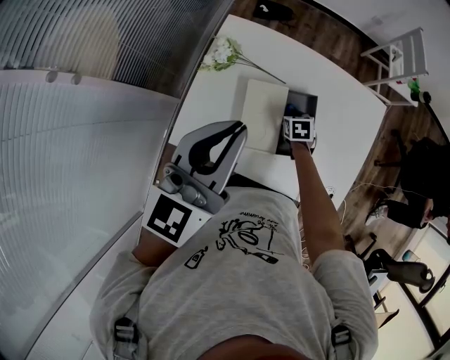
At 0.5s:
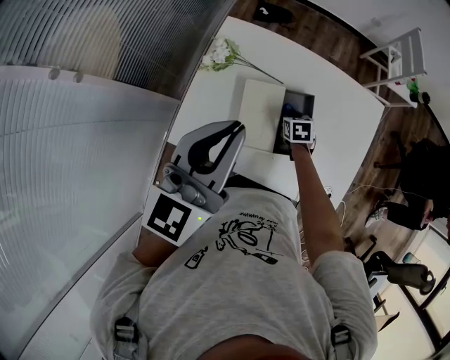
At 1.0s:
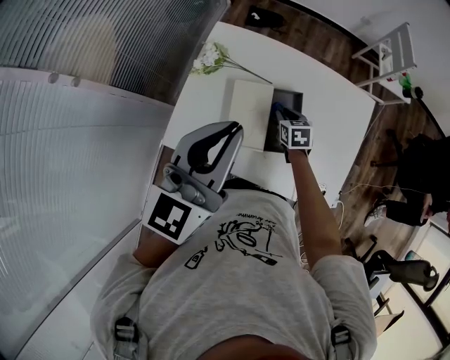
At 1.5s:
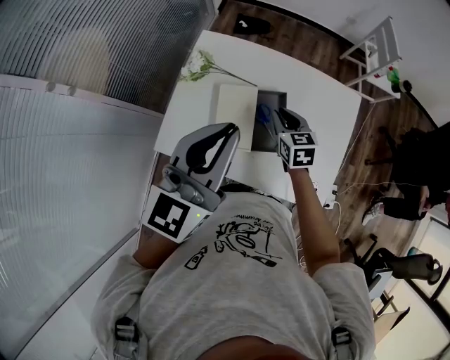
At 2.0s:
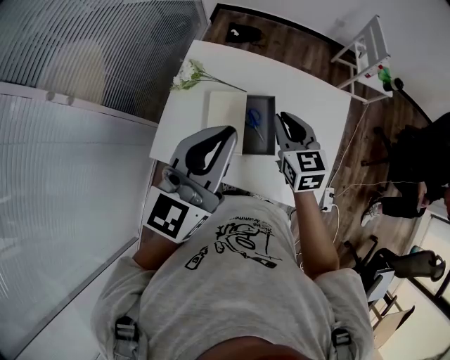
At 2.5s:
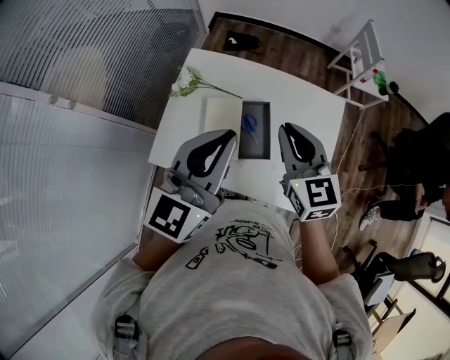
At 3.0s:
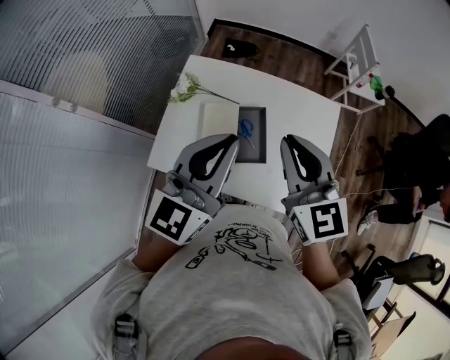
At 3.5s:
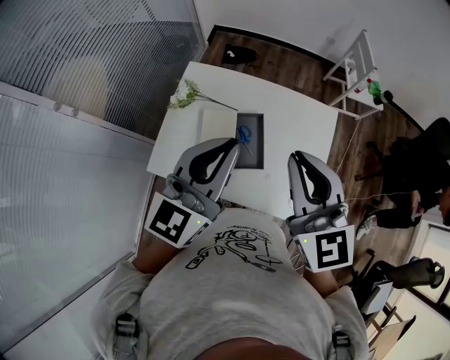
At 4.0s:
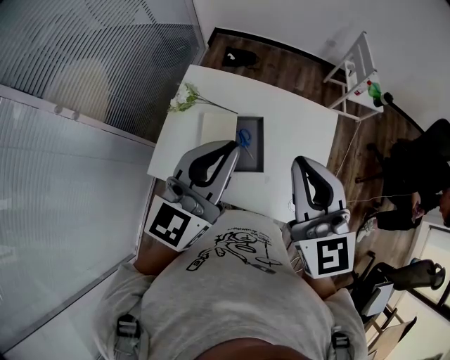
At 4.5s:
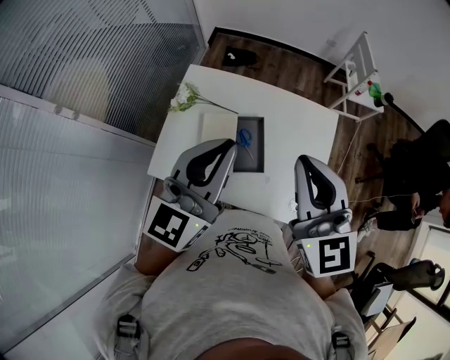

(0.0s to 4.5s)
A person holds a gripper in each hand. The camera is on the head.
0.0s - 2.0s: The right gripper shifts roughly 30 cm upward, and tilts its fingers approximately 40 degrees upward, while the left gripper goes roughly 10 cm to the right.
2.0s - 4.5s: The right gripper is displaced upward and backward by about 25 cm, and swivels approximately 20 degrees.

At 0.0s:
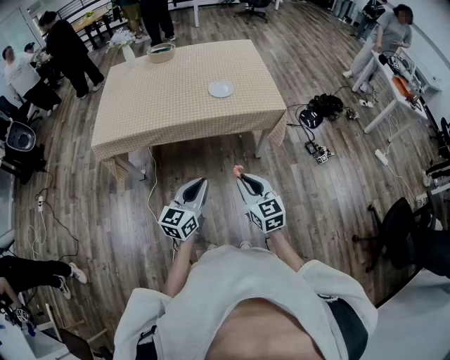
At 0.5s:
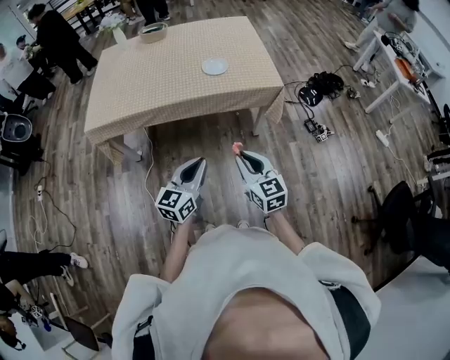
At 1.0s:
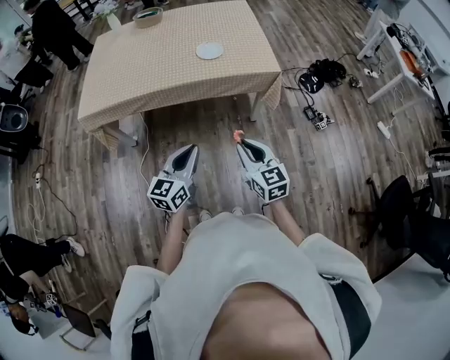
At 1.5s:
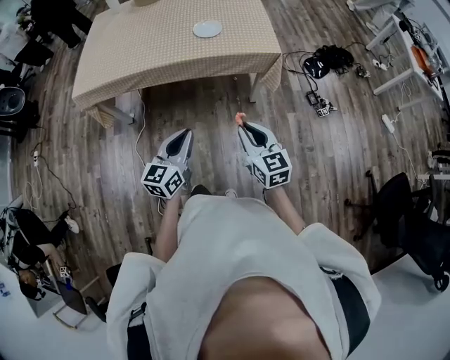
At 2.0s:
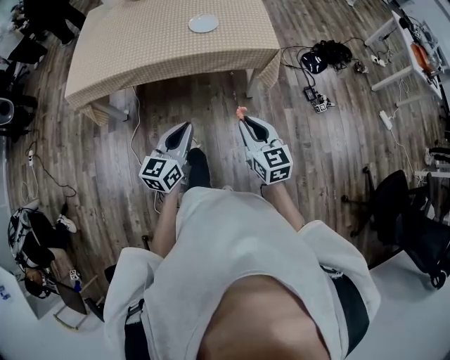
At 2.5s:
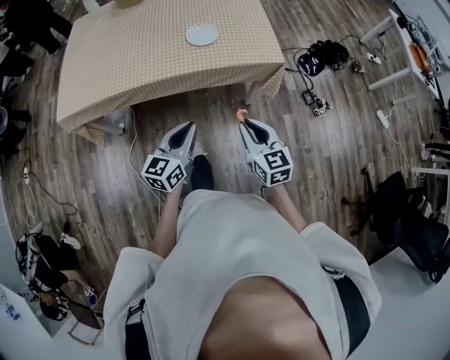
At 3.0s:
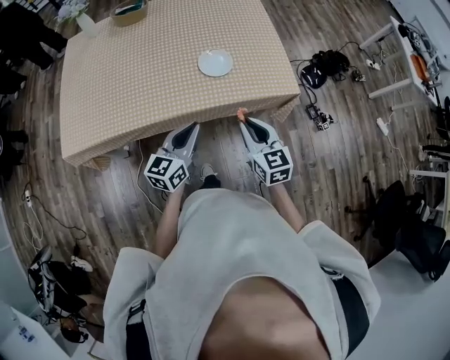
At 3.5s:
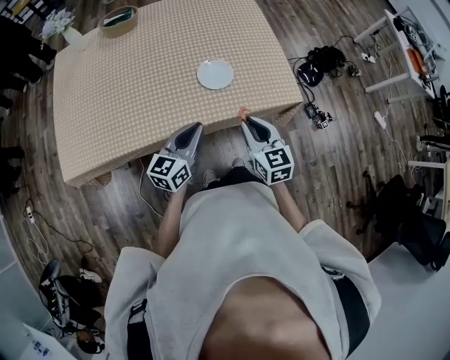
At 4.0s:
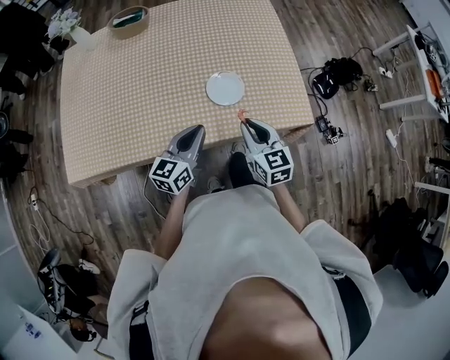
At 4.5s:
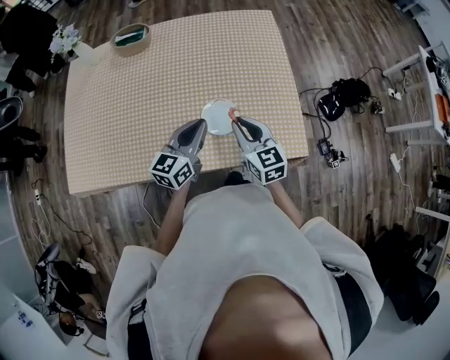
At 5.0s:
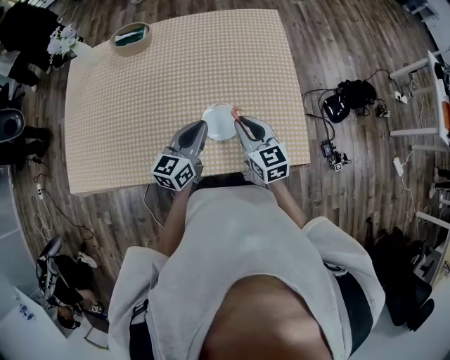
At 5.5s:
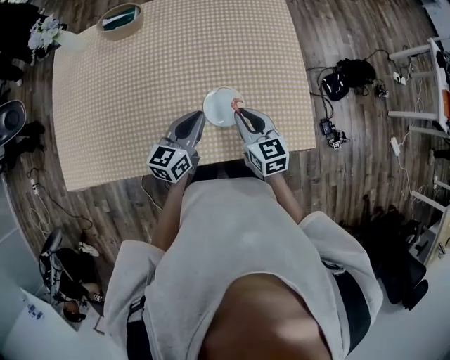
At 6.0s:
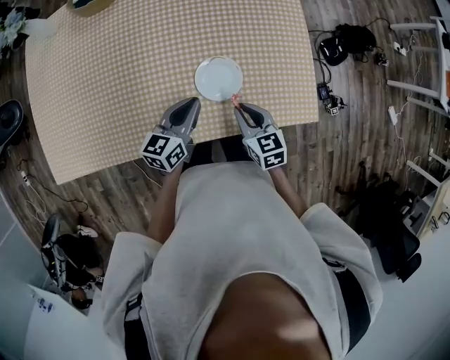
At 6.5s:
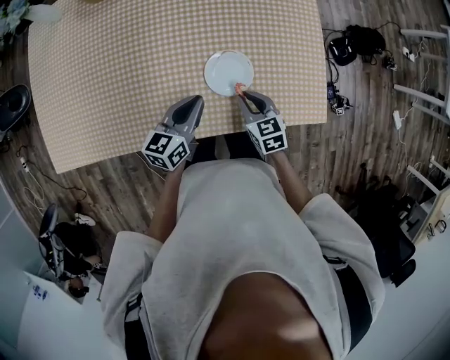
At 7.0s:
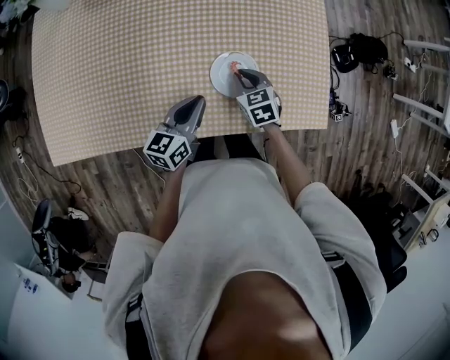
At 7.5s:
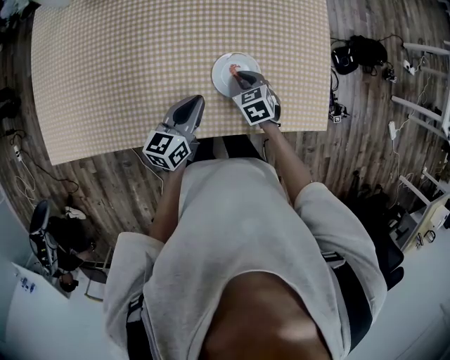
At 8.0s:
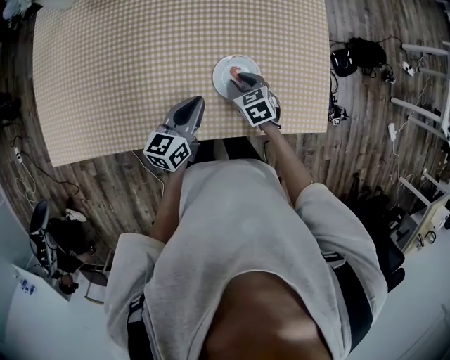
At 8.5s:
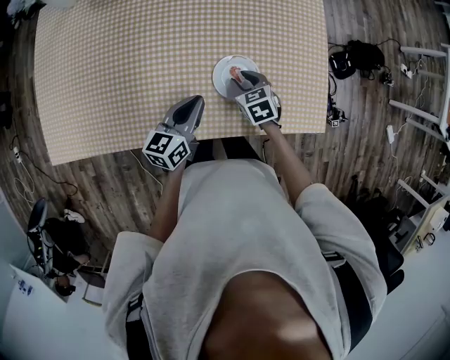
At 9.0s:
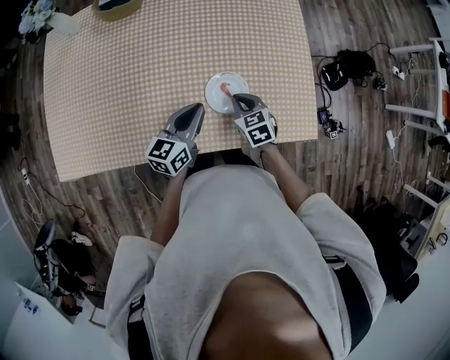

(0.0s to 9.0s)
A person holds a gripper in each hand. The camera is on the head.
0.0s - 2.0s: The grippers both shift to the right by about 10 cm.
2.0s - 4.5s: The two grippers travel together, forward, some 60 cm.
4.5s - 7.0s: The left gripper heads downward and to the left, covering about 15 cm. The right gripper heads downward, covering some 20 cm, and points its fingers roughly 30 degrees further downward.
7.0s - 9.0s: The left gripper changes place by some 5 cm. The right gripper opens and closes again.

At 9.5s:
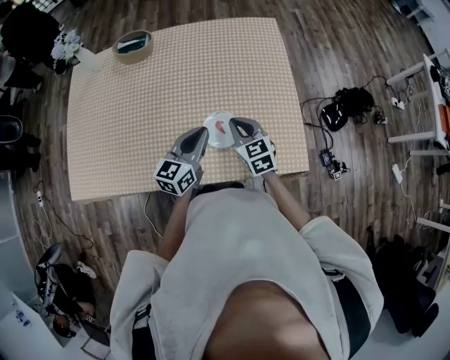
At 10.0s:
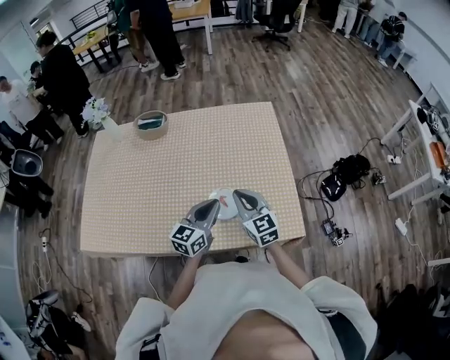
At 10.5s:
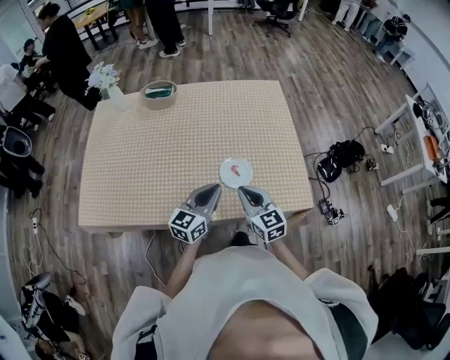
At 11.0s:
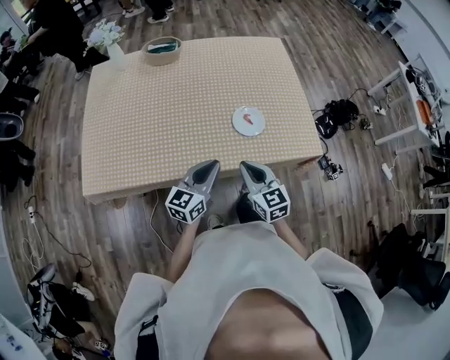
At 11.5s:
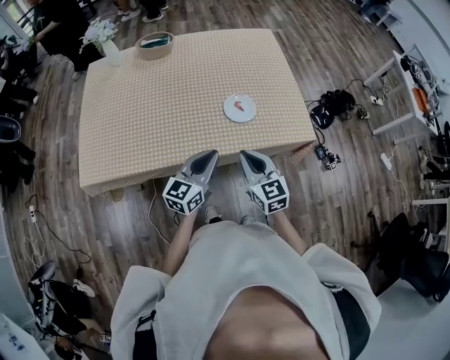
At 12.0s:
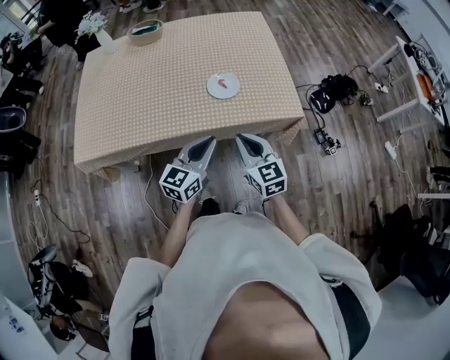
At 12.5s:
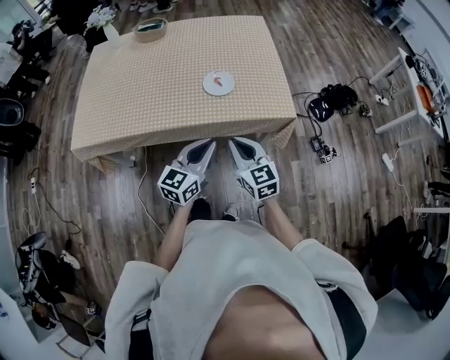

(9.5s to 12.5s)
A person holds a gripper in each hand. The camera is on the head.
9.5s - 11.0s: Both grippers move backward and to the left, roughly 25 cm.
11.0s - 12.5s: The two grippers go about 20 cm to the right and backward.

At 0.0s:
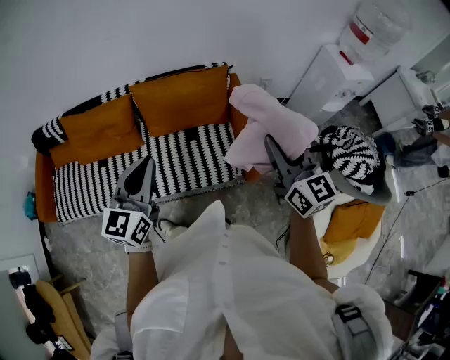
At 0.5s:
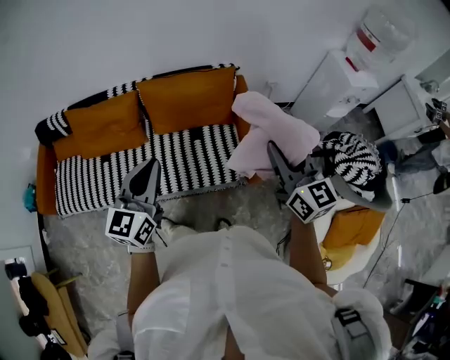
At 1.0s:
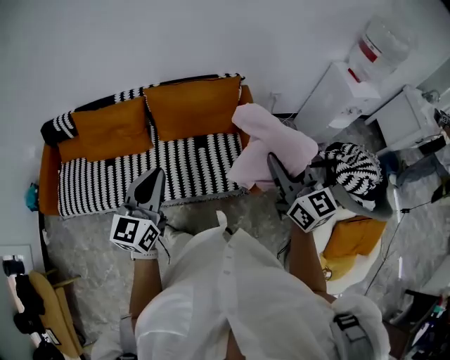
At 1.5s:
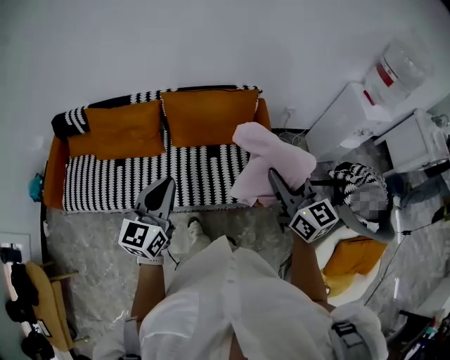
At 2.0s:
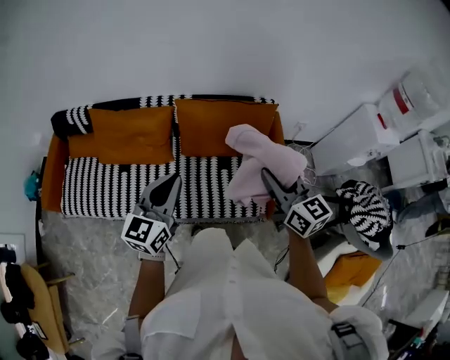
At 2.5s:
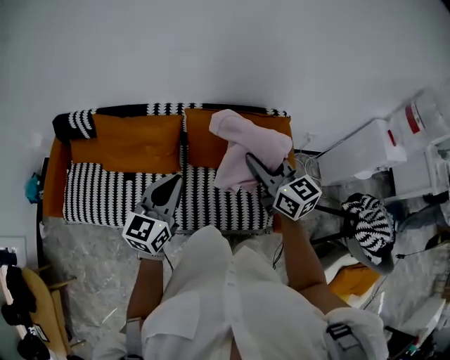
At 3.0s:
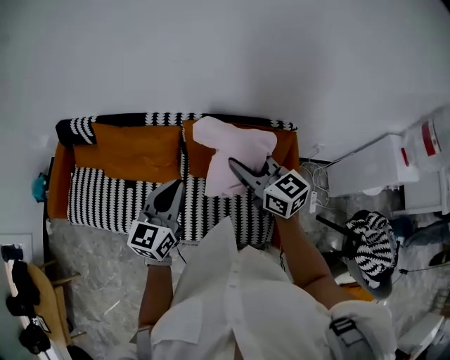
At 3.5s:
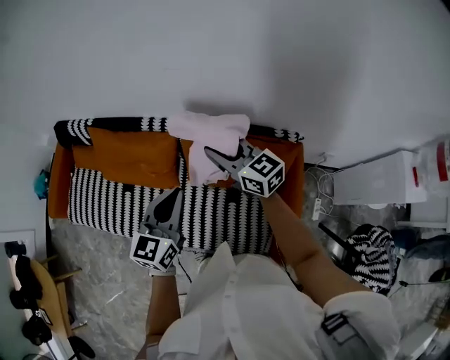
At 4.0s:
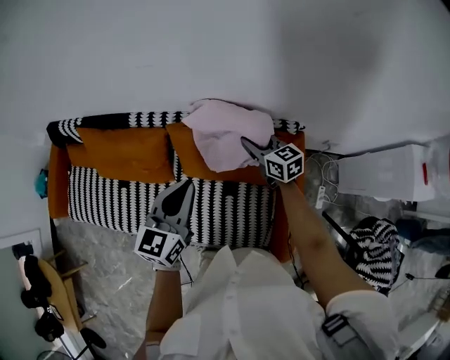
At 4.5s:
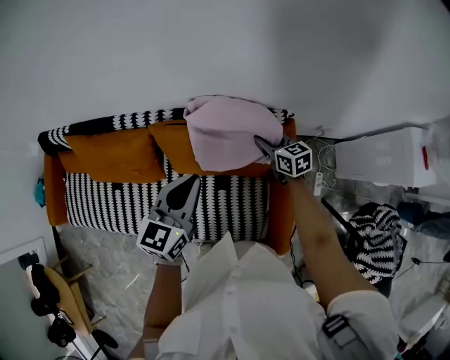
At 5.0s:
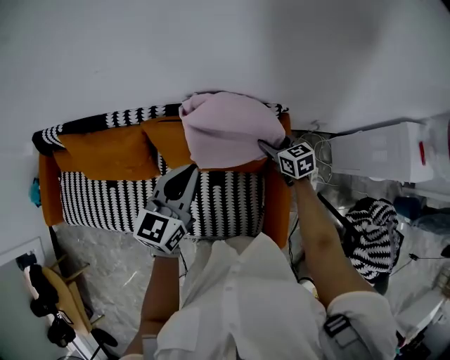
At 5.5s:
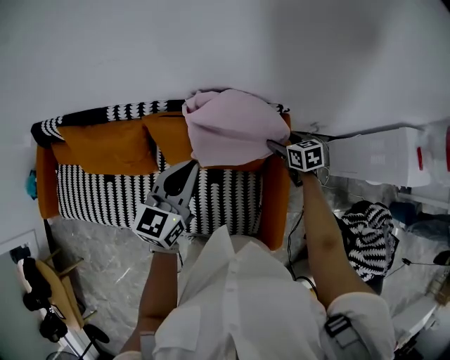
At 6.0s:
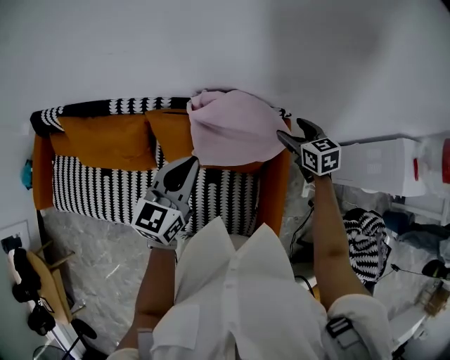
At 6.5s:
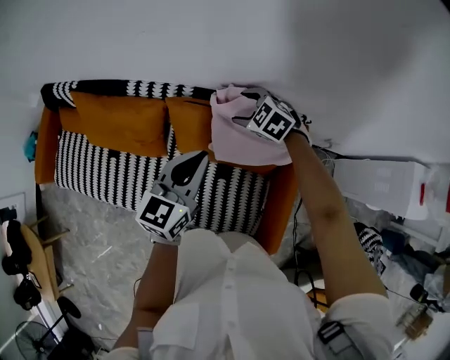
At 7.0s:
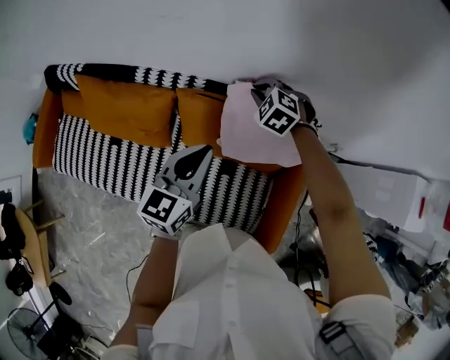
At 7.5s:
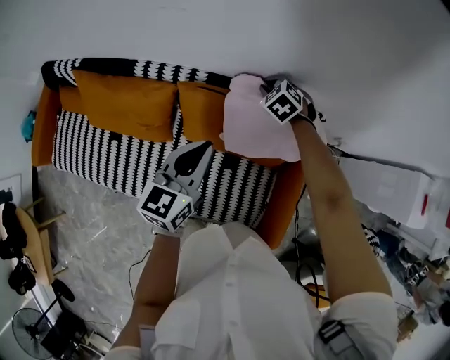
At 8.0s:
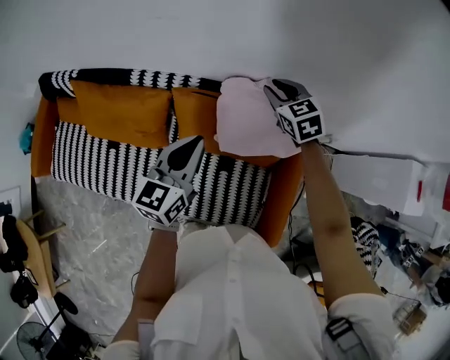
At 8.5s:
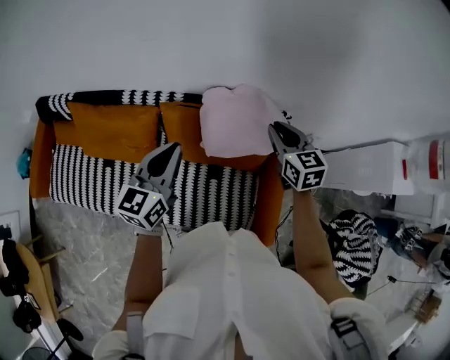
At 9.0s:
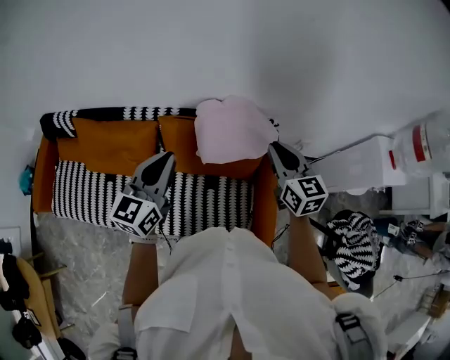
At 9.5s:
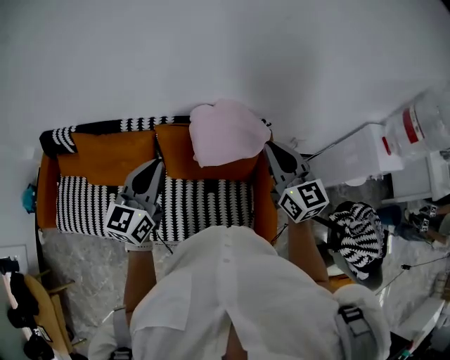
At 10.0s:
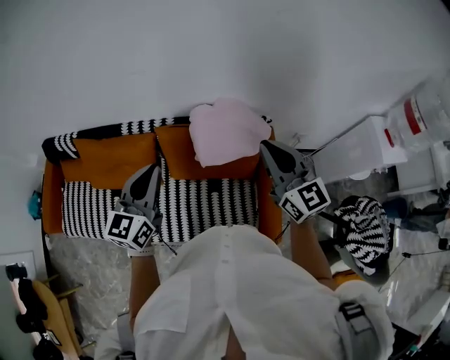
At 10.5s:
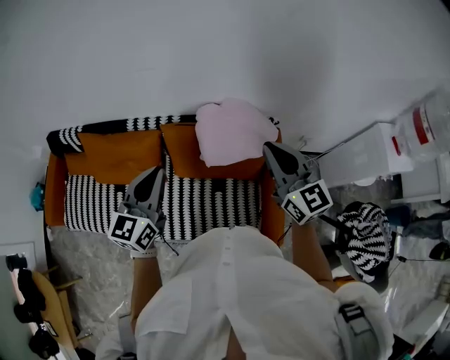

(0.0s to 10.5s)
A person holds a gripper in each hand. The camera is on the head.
0.0s - 2.0s: The left gripper goes approximately 15 cm to the left and forward; the right gripper heads to the left and forward, covering some 20 cm.
2.0s - 4.0s: The left gripper is displaced forward and to the right by about 30 cm, while the right gripper moves forward and downward, some 50 cm, and turns by some 30 degrees.
4.0s - 6.5s: The right gripper travels to the right and back again, roughly 20 cm each way, swivels roughly 50 degrees, and opens.
6.5s - 8.5s: The right gripper is displaced upward, to the right and backward by approximately 20 cm, turns by about 50 degrees, and closes, while the left gripper heads to the left, covering roughly 5 cm.
8.5s - 10.5s: The right gripper heads upward and backward, covering some 20 cm, and rotates about 30 degrees; the left gripper heads backward and upward, covering about 10 cm.
